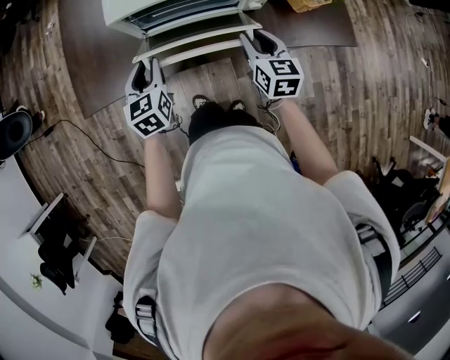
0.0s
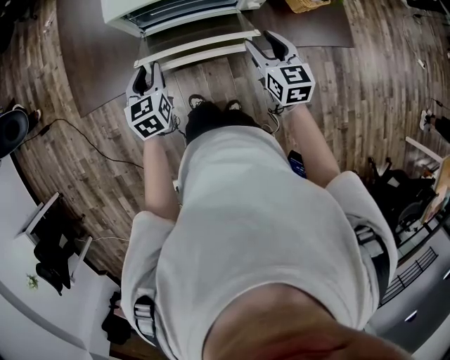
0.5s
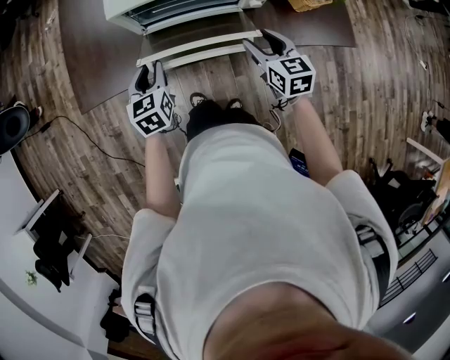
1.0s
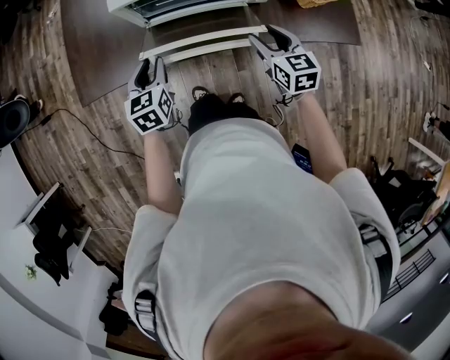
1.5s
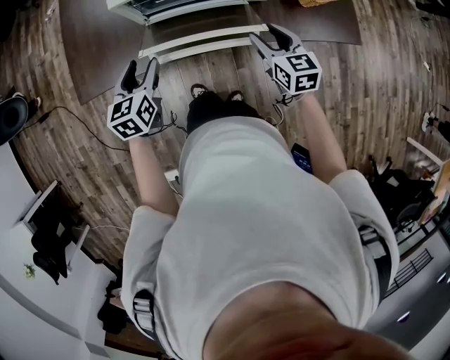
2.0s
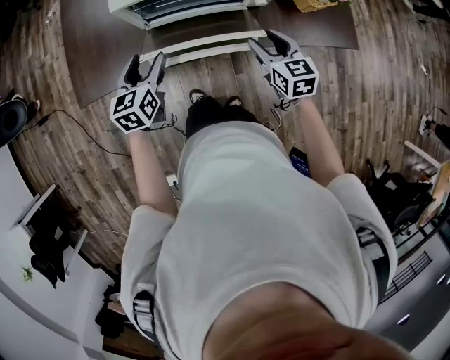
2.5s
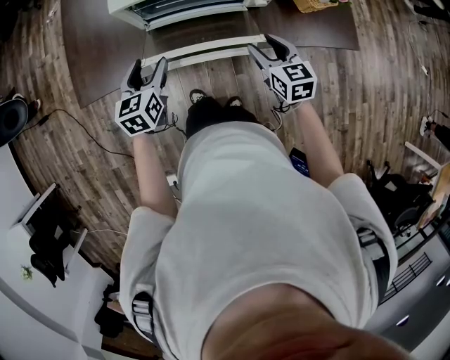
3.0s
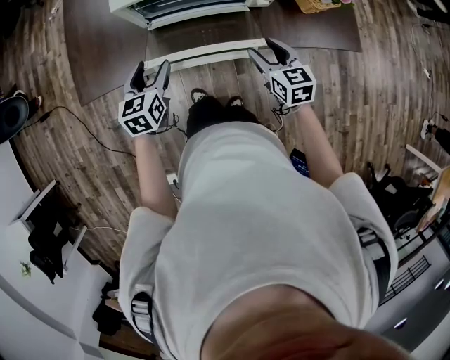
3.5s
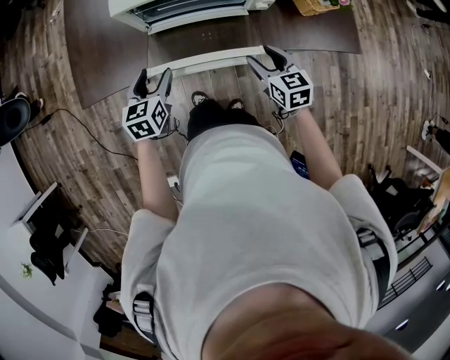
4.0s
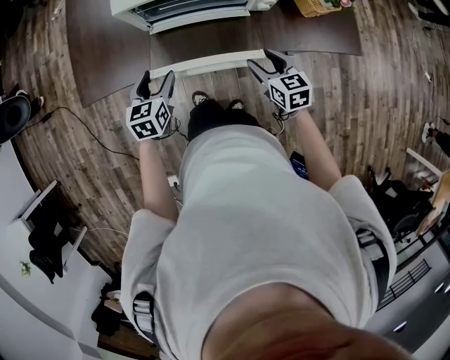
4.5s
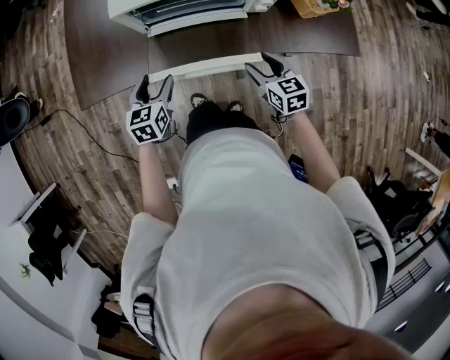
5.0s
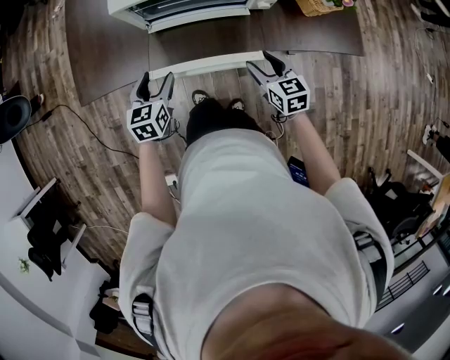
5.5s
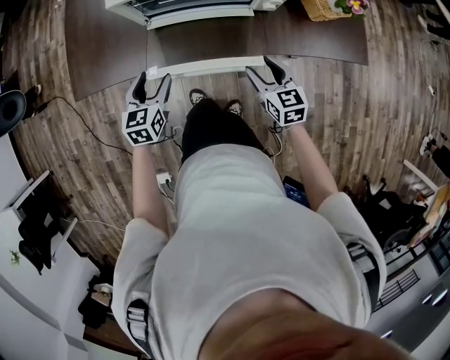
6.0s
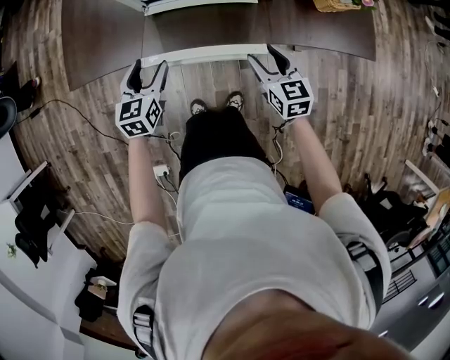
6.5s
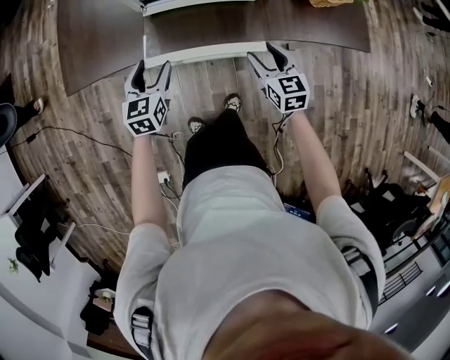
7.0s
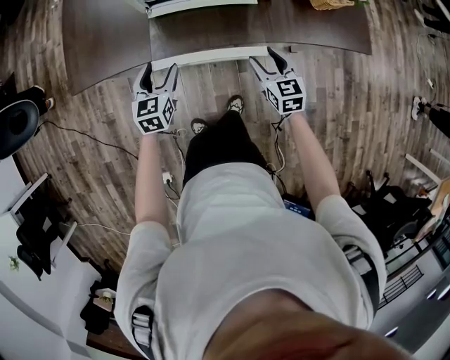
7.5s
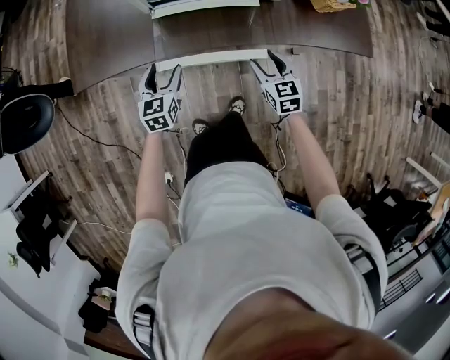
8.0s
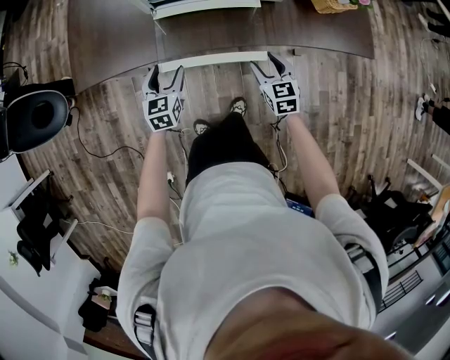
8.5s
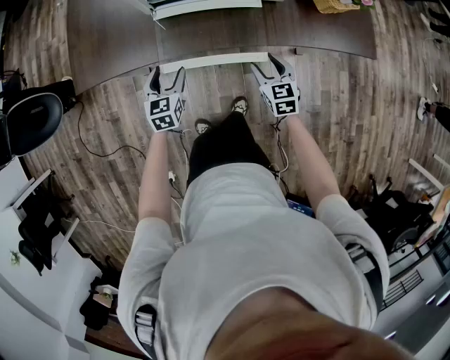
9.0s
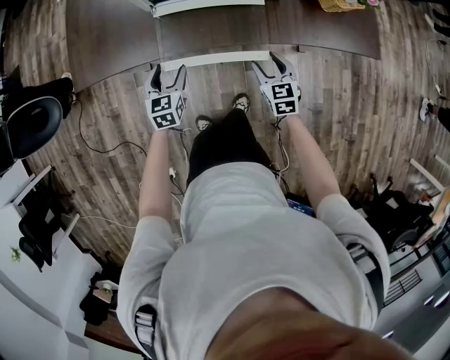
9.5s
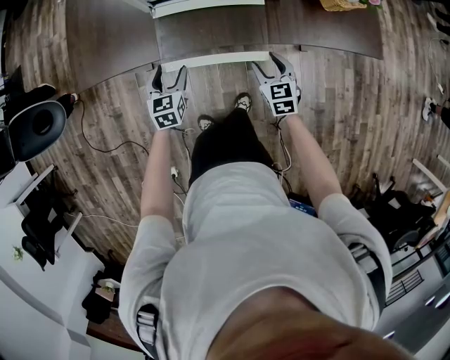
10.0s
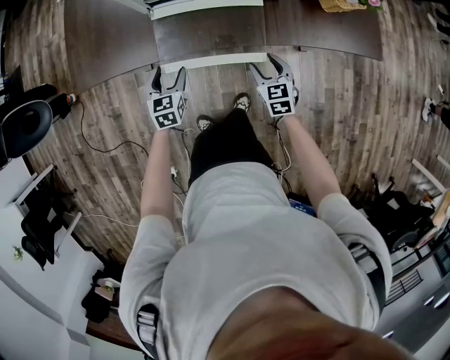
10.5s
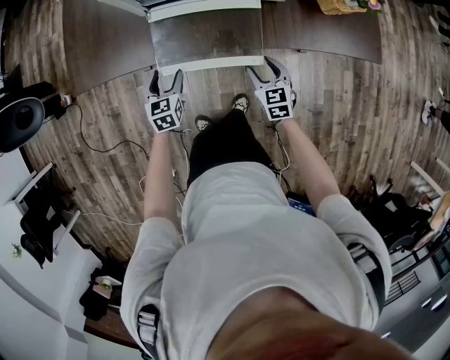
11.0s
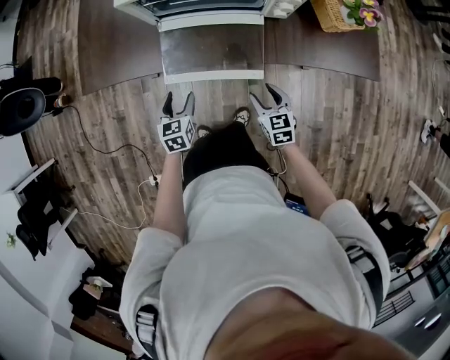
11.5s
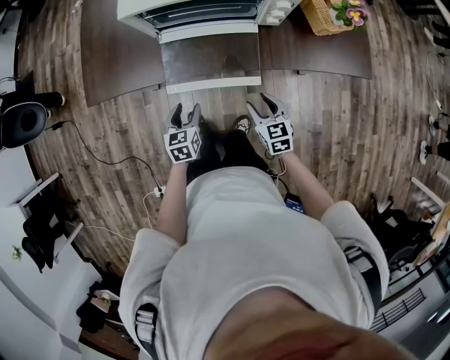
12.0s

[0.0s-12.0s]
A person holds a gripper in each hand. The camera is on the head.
0.0s to 2.0s: The right gripper opens. The left gripper opens.
2.0s to 4.0s: The right gripper moves some 5 cm.
4.0s to 6.0s: The grippers make only small movements.
6.0s to 8.0s: The two grippers go some 5 cm downward.
8.0s to 10.0s: The grippers make only small movements.
10.0s to 12.0s: Both grippers move backward, some 5 cm.

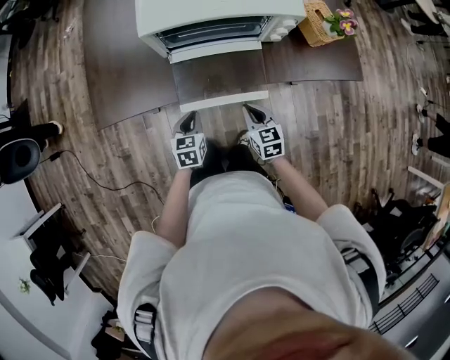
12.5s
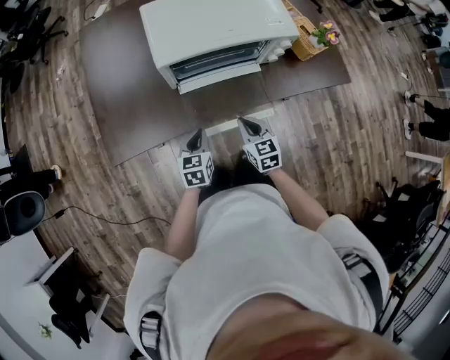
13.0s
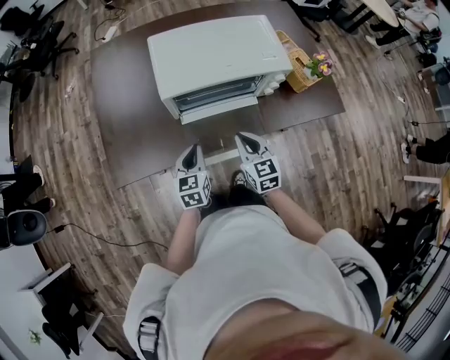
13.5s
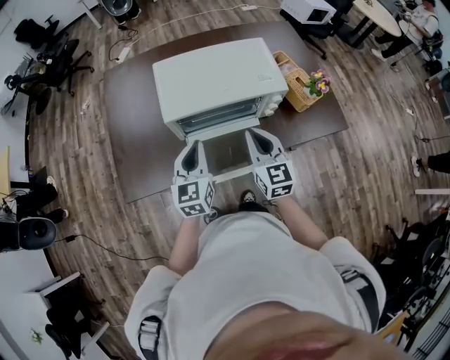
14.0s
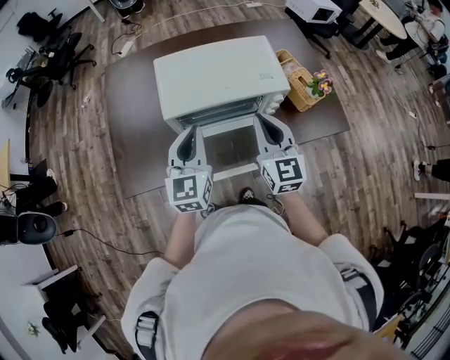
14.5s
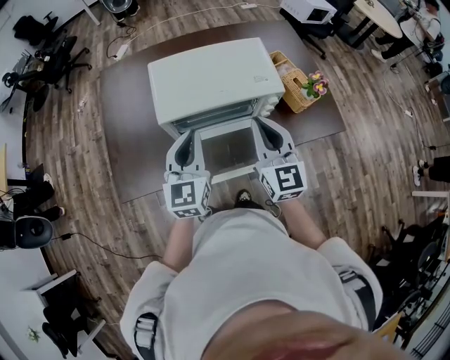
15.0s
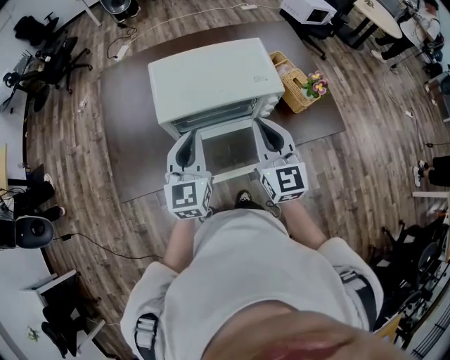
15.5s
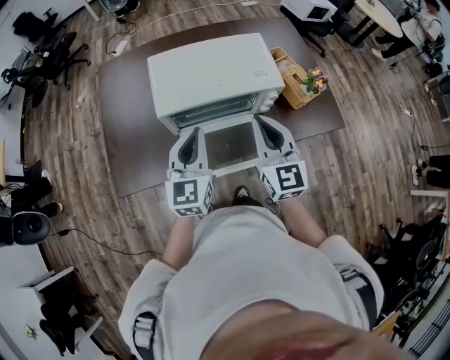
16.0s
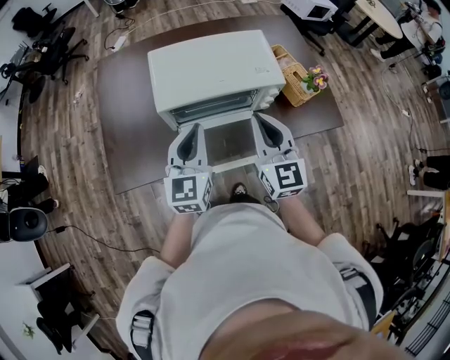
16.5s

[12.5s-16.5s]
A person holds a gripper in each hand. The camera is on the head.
12.5s to 14.5s: The grippers both shift upward and forward by roughly 35 cm. The left gripper points its fingers roughly 30 degrees further upward, while the right gripper angles its fingers upward, by about 30 degrees.
14.5s to 16.5s: There are only small adjustments of the grippers.

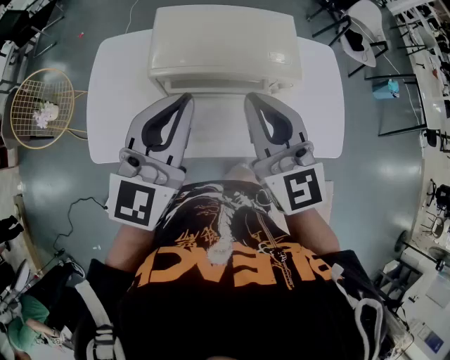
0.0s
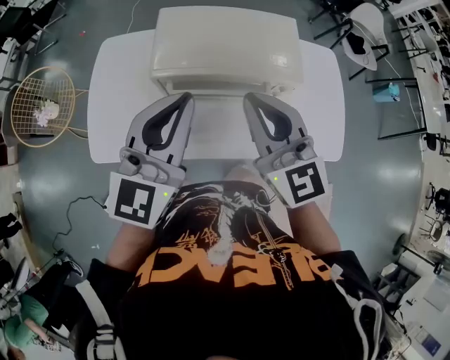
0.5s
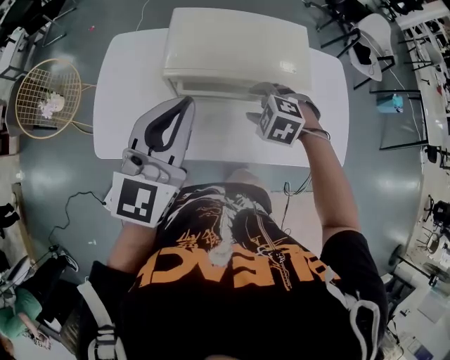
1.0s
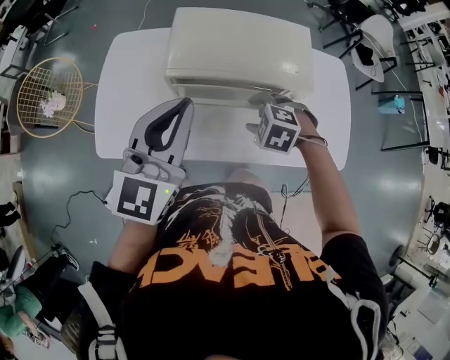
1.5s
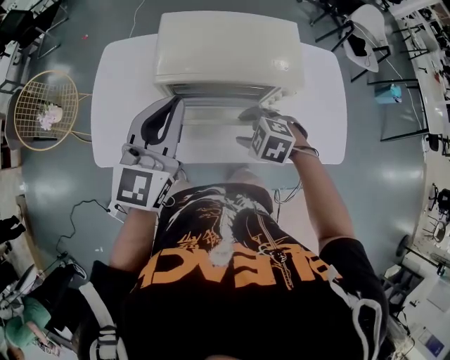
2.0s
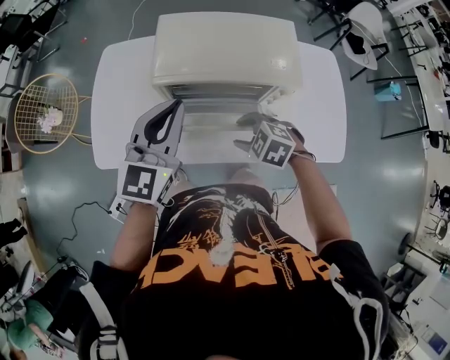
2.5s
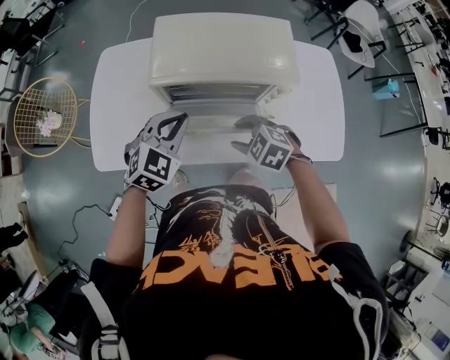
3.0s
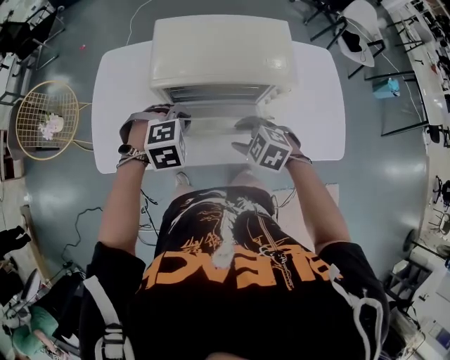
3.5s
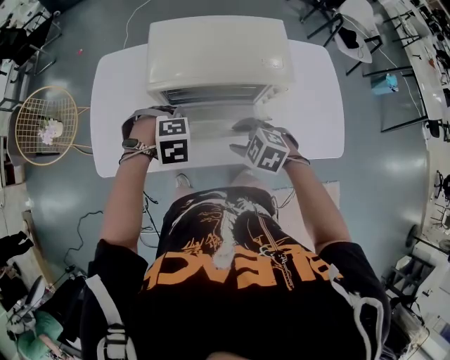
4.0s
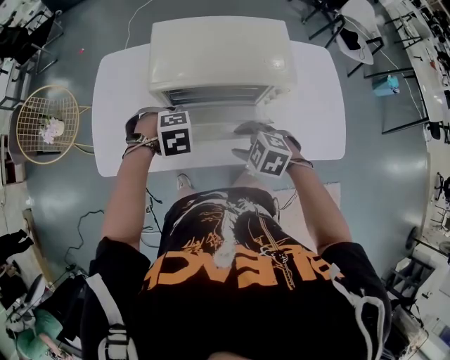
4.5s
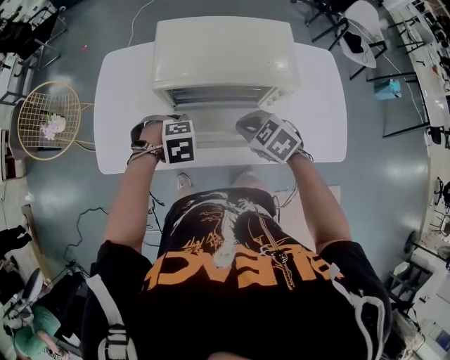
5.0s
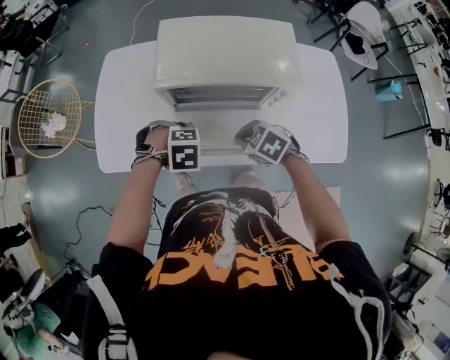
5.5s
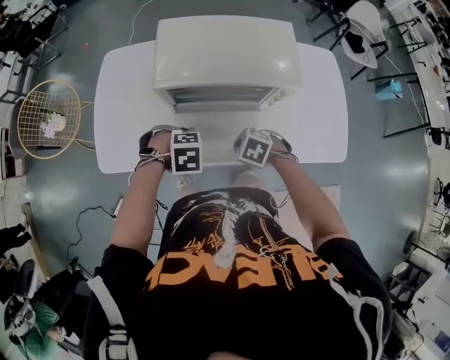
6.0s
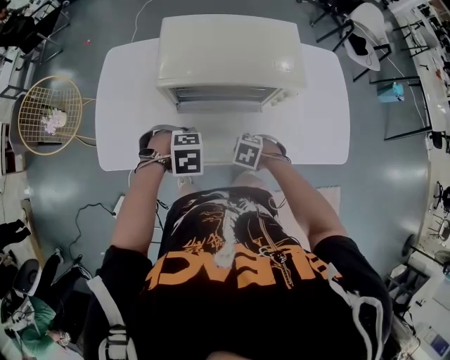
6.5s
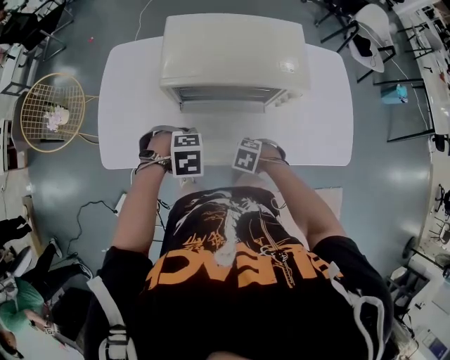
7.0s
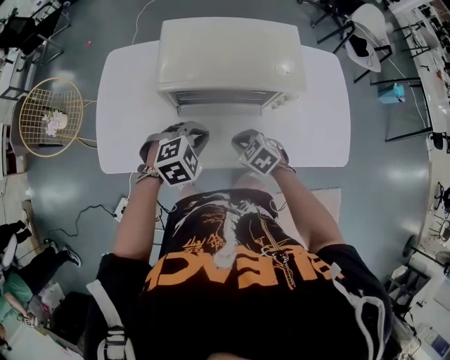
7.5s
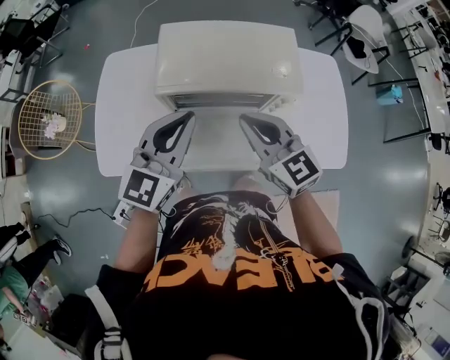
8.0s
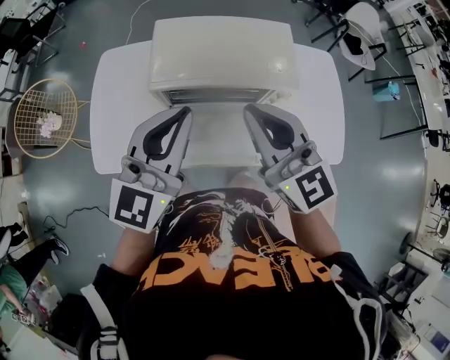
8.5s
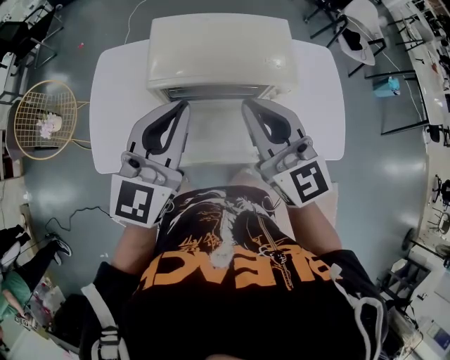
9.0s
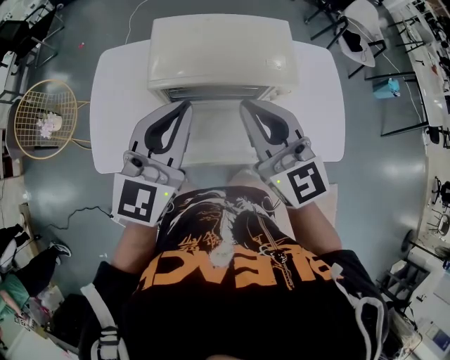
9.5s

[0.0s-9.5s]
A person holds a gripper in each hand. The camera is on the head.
0.0s to 2.0s: The right gripper goes approximately 25 cm downward, angles its fingers downward, by some 70 degrees, and opens its fingers; the left gripper ends up roughly 5 cm from where it was.
2.0s to 4.0s: The left gripper is displaced downward by about 25 cm, tips its fingers downward by some 80 degrees, and opens.
4.0s to 5.5s: The left gripper shifts by some 5 cm; the right gripper closes up.
5.5s to 7.5s: The left gripper changes place by roughly 5 cm, and turns by approximately 30 degrees; the right gripper is displaced downward by approximately 5 cm.
7.5s to 9.5s: Both grippers move upward, some 30 cm. The right gripper tips its fingers upward by roughly 60 degrees. Meanwhile the left gripper tips its fingers upward by some 60 degrees.

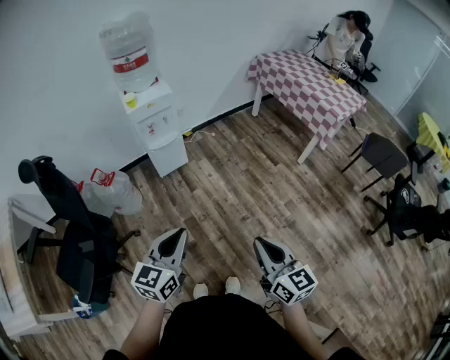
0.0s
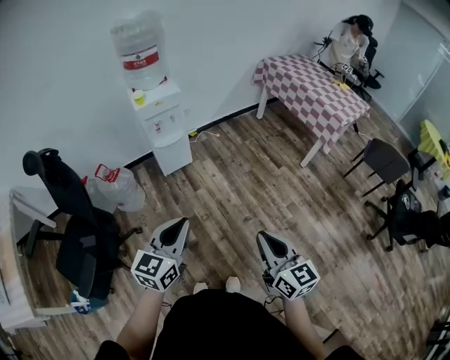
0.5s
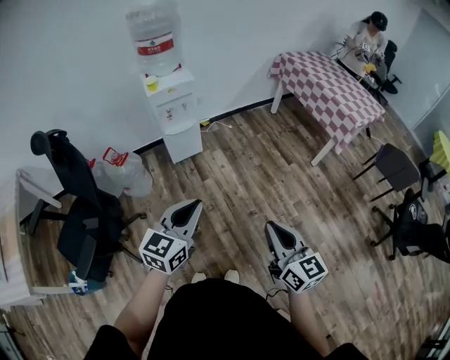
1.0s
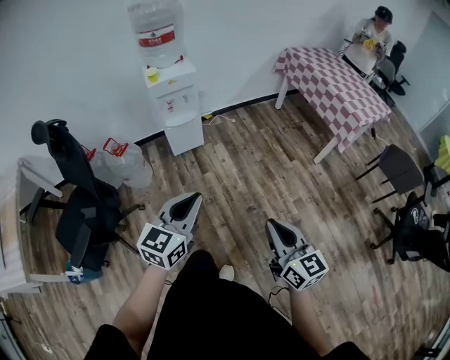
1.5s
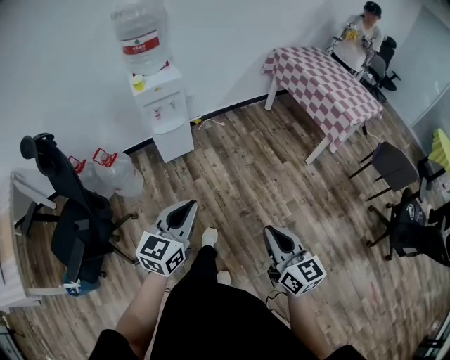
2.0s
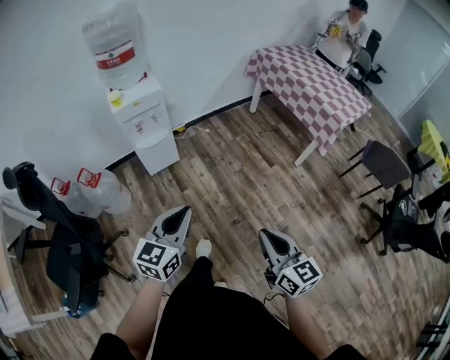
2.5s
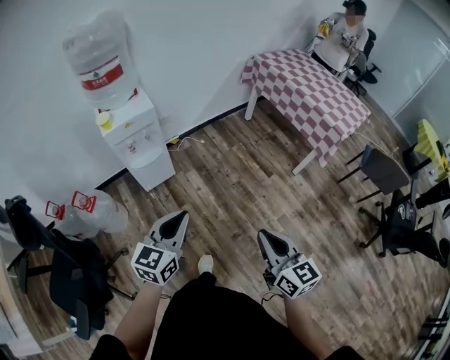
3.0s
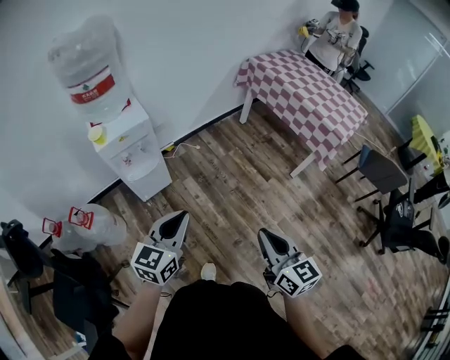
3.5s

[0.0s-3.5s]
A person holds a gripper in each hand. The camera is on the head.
0.0s to 2.0s: The right gripper moves to the right, some 5 cm; the left gripper is displaced to the right and forward by about 10 cm.
2.0s to 3.5s: The grippers both shift forward by some 25 cm.
